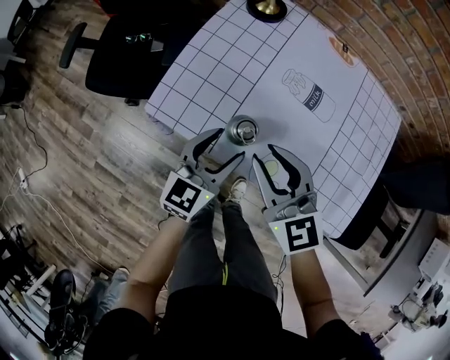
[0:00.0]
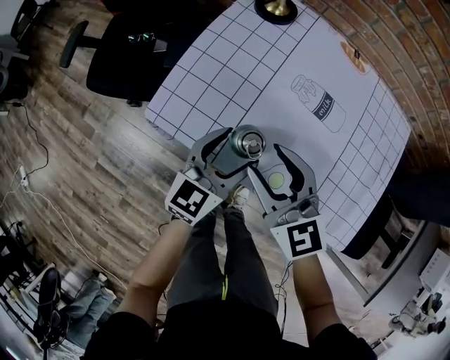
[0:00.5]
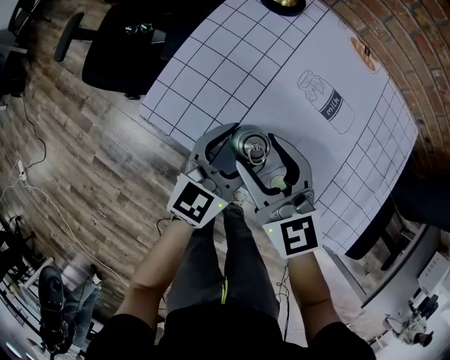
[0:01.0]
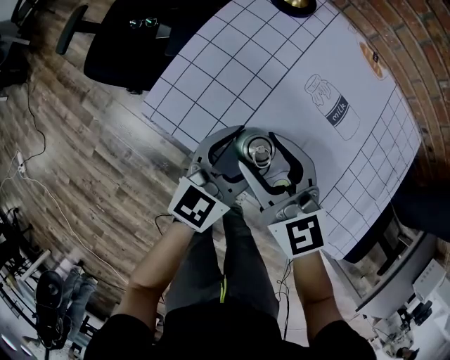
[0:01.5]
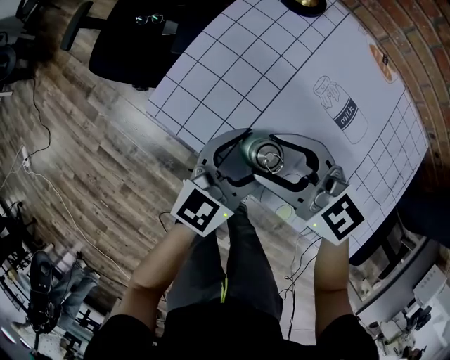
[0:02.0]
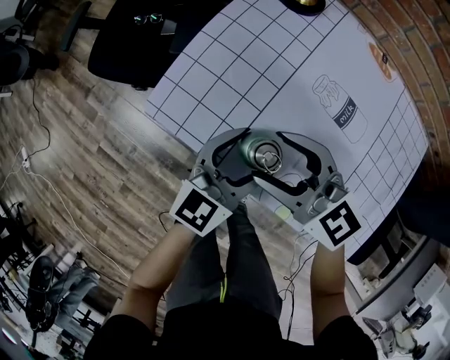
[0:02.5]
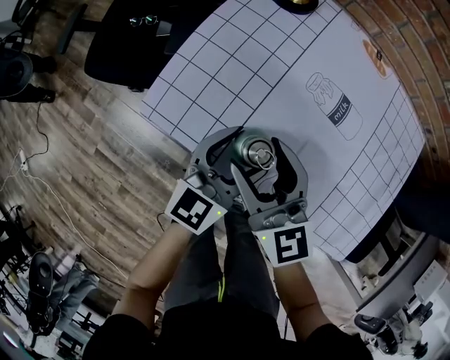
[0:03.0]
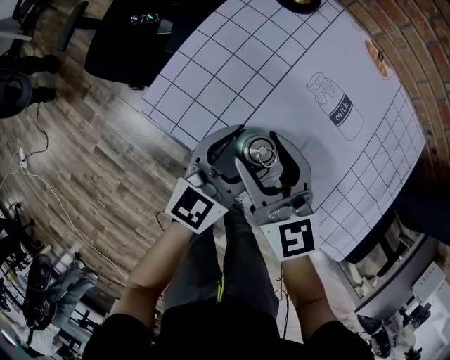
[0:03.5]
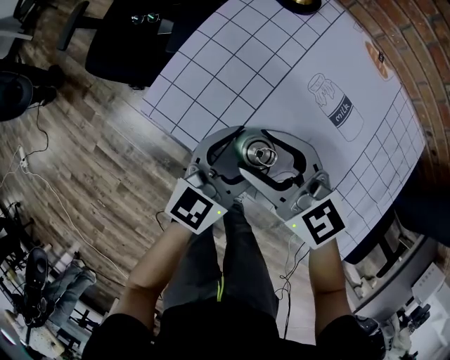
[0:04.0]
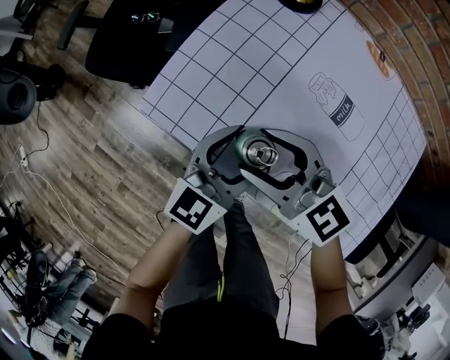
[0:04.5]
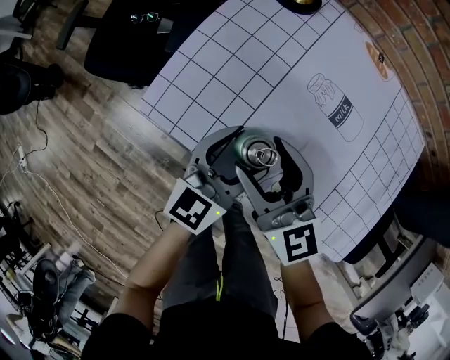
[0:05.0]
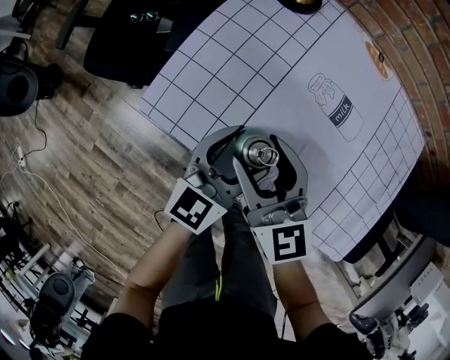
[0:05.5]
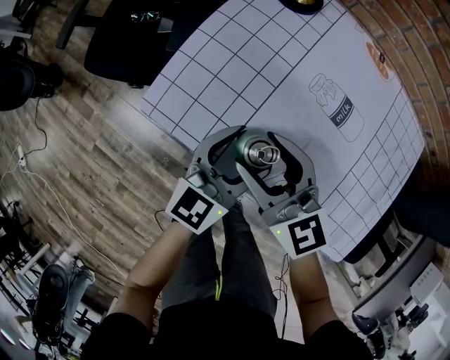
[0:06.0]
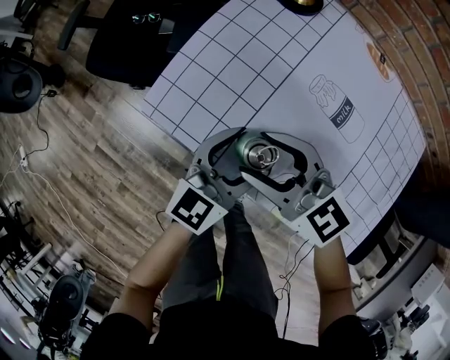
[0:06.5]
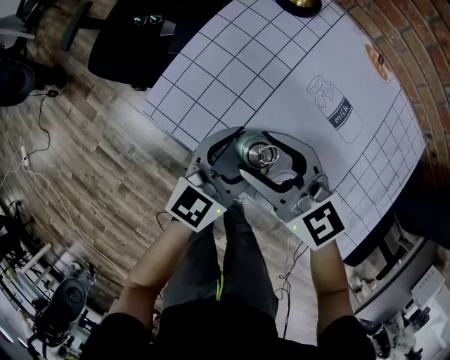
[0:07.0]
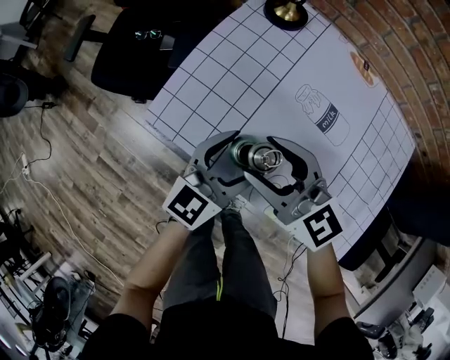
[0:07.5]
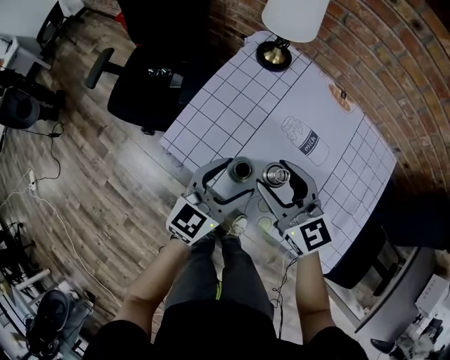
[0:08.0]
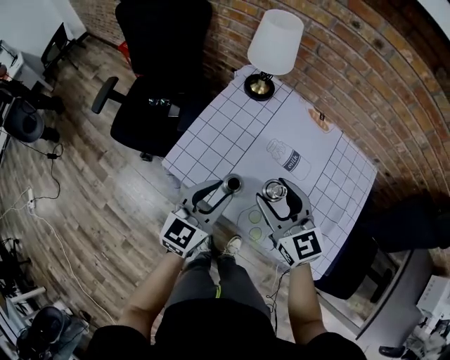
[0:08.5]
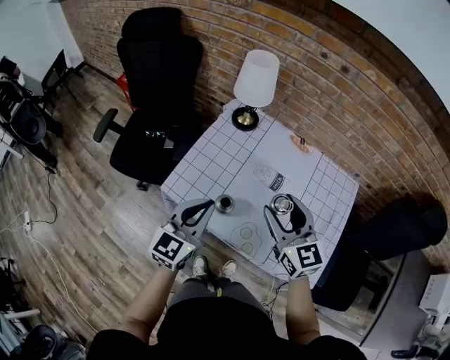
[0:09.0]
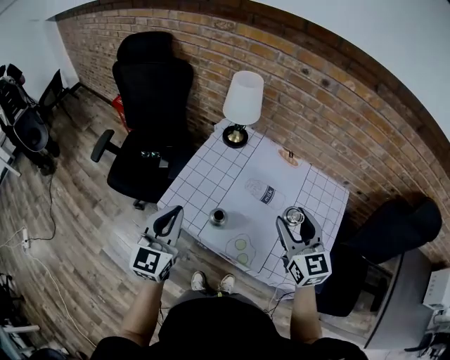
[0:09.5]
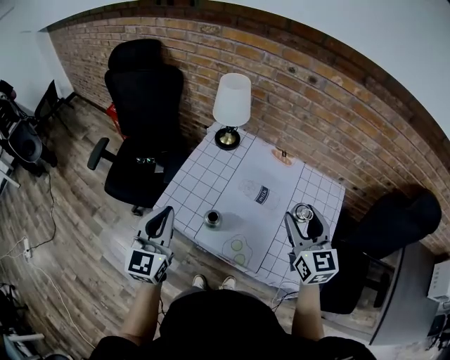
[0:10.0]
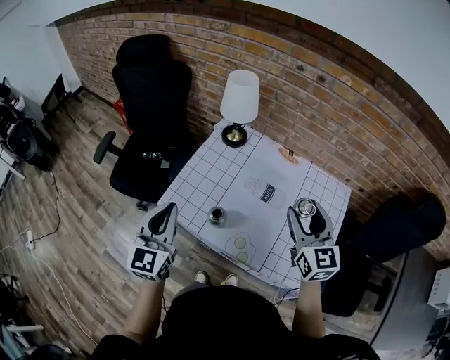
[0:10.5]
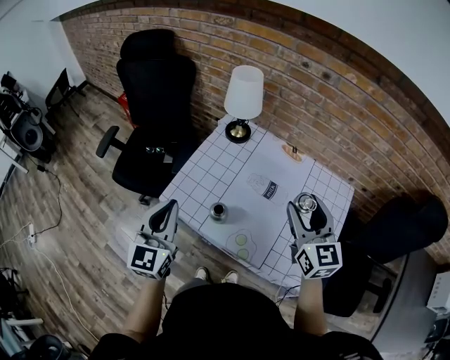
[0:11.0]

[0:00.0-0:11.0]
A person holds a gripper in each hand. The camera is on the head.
0:00.0 to 0:02.0: The right gripper goes about 5 cm downward, swivels about 40 degrees, and opens its fingers.
0:02.0 to 0:03.5: The right gripper changes its angle by some 40 degrees.
0:05.5 to 0:07.5: The right gripper rotates roughly 30 degrees.
0:07.5 to 0:09.0: The right gripper is displaced upward and to the right by some 20 cm, and turns by approximately 30 degrees; the left gripper goes approximately 15 cm upward, and closes up.
0:09.0 to 0:11.0: The right gripper heads to the right and upward, covering some 10 cm; the left gripper shifts about 10 cm to the left and upward.

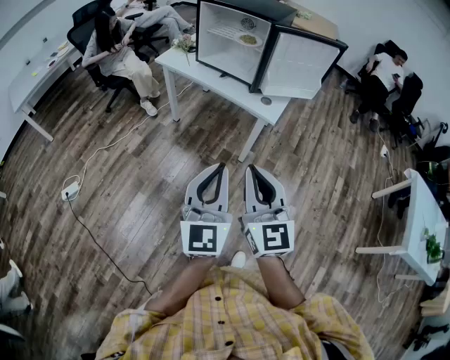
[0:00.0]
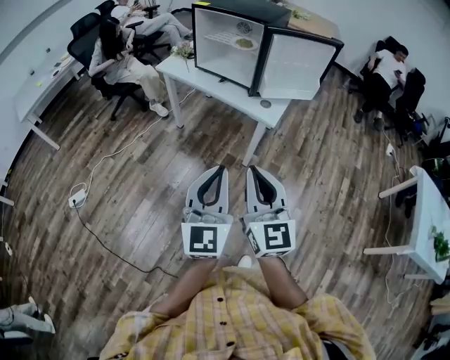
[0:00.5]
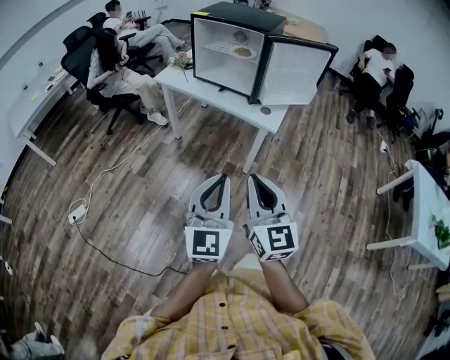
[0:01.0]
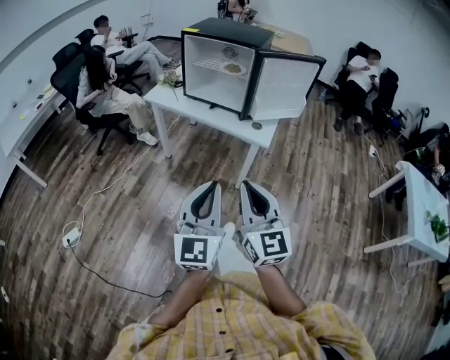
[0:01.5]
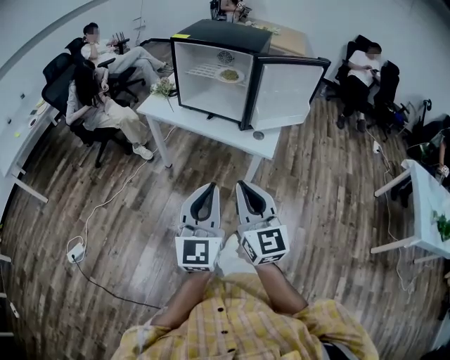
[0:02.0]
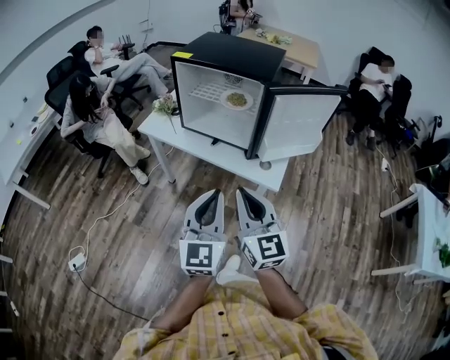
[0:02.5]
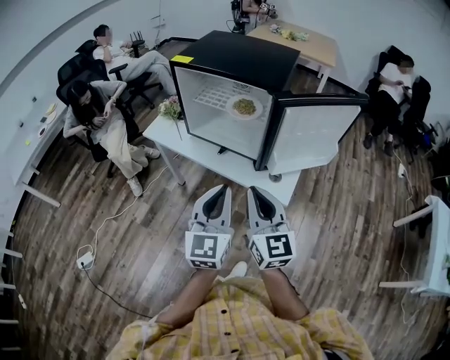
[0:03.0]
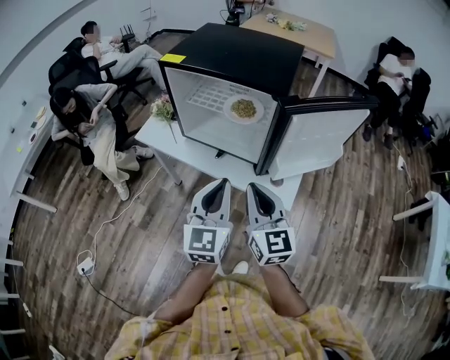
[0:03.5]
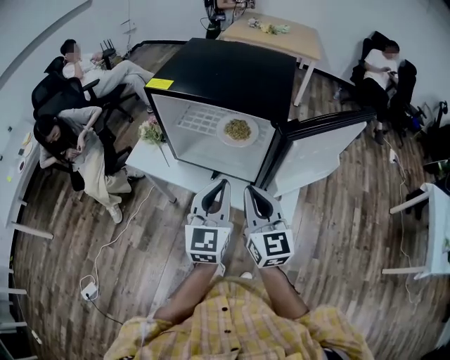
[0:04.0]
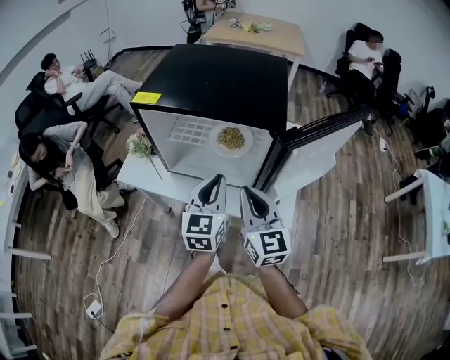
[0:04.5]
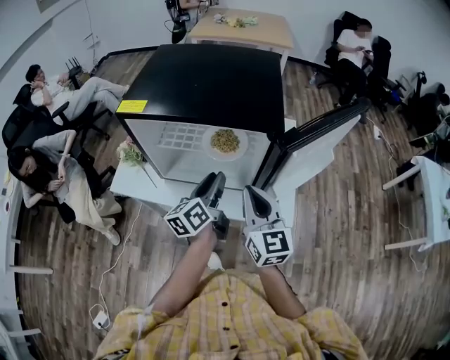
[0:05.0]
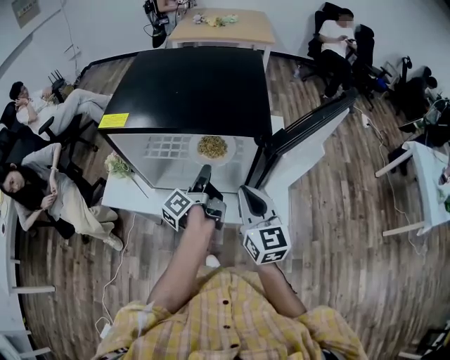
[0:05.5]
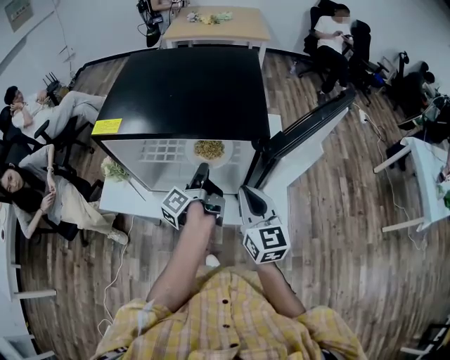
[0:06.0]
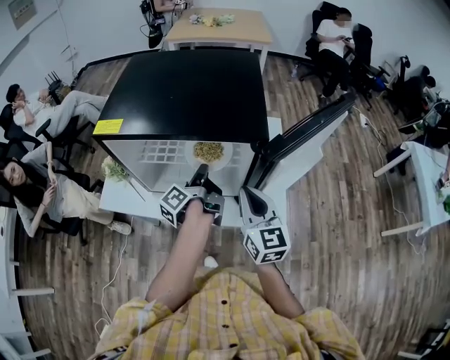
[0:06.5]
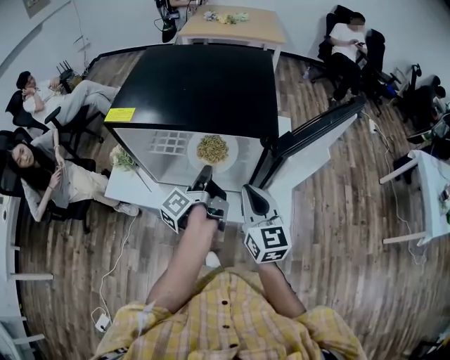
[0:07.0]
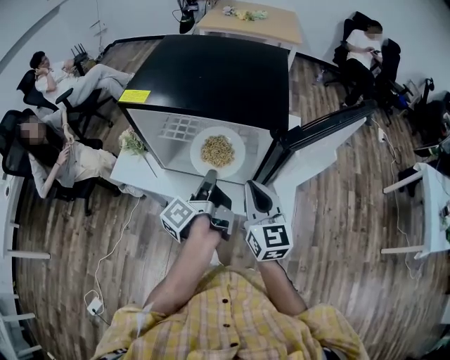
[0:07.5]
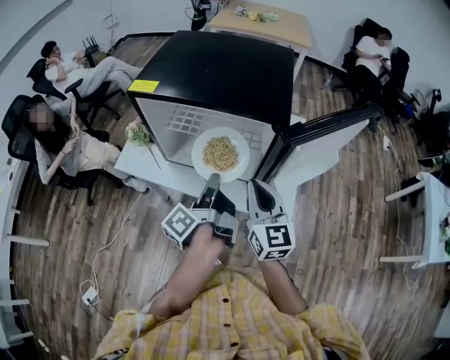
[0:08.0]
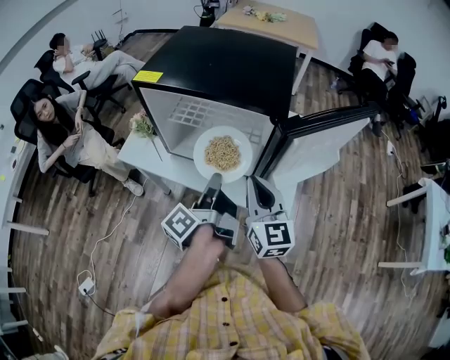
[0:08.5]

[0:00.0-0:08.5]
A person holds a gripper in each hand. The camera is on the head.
0:00.0 to 0:02.0: The grippers both shift forward by about 15 cm.
0:02.0 to 0:04.0: The two grippers go about 40 cm forward.
0:04.0 to 0:06.5: The right gripper goes roughly 10 cm forward; the left gripper goes some 25 cm forward and downward, rotates around the line of its fingers by about 90 degrees, counterclockwise from behind, and opens, then closes once more.
0:06.5 to 0:08.5: The right gripper goes some 5 cm backward. The left gripper moves backward and upward, some 20 cm.

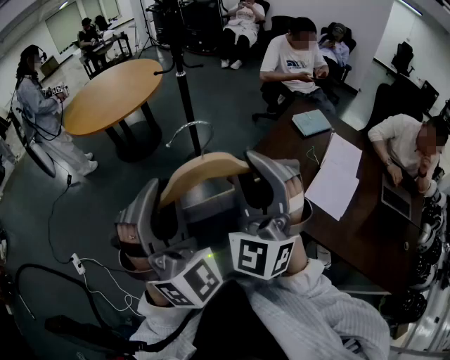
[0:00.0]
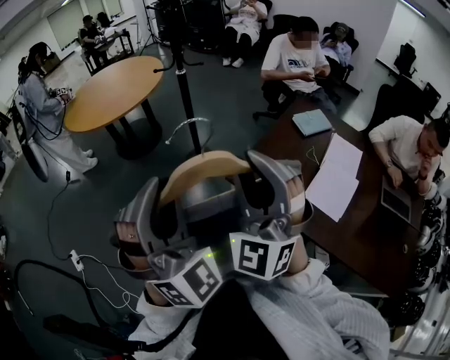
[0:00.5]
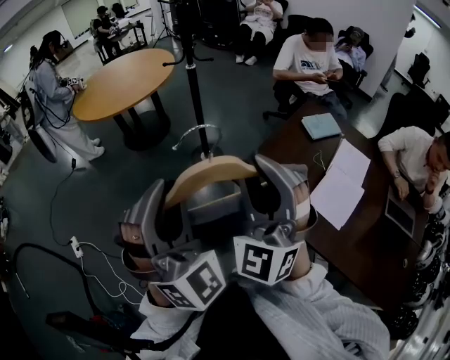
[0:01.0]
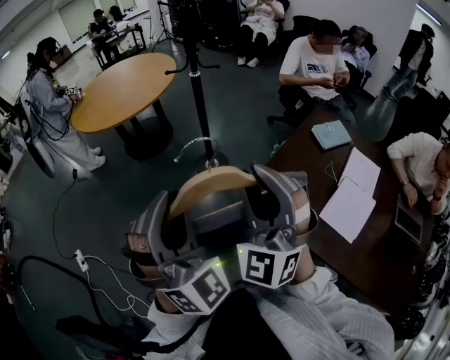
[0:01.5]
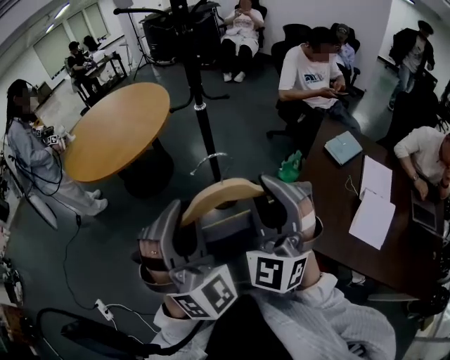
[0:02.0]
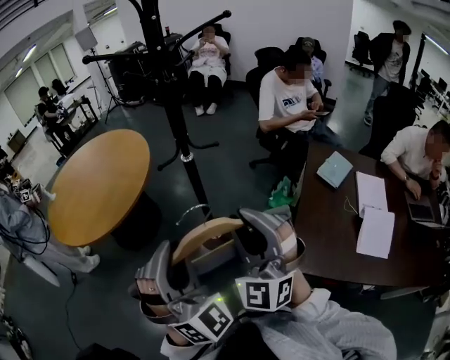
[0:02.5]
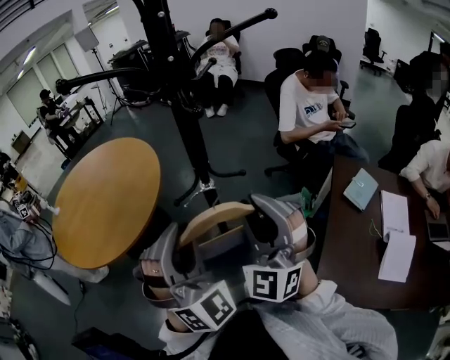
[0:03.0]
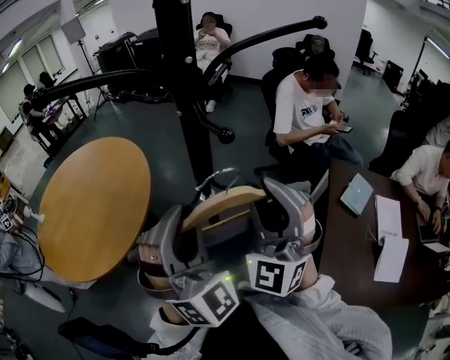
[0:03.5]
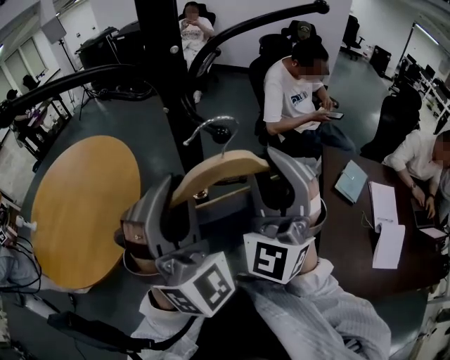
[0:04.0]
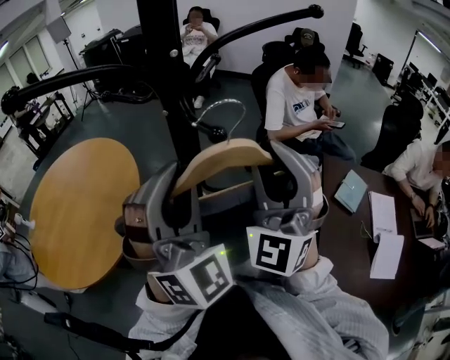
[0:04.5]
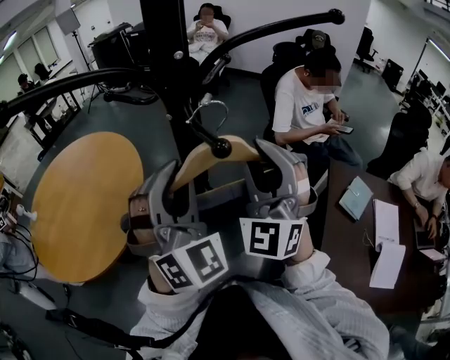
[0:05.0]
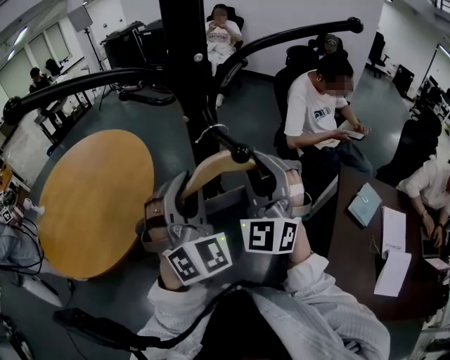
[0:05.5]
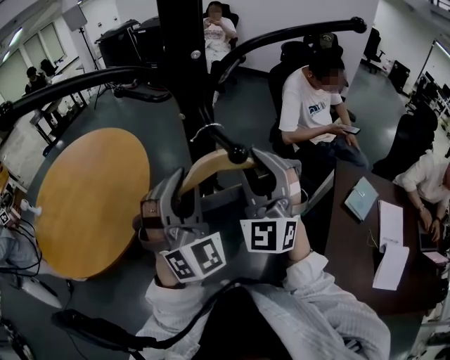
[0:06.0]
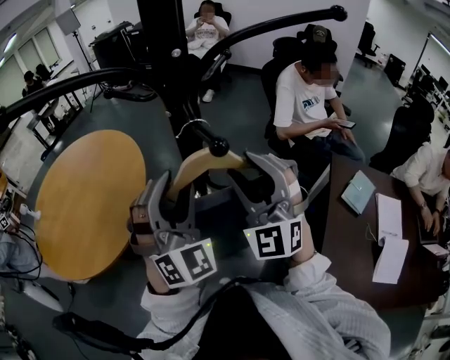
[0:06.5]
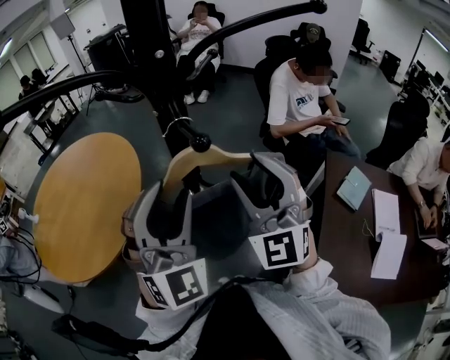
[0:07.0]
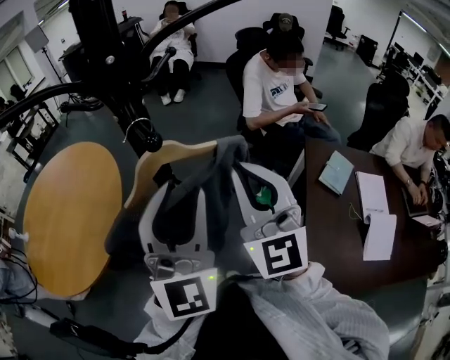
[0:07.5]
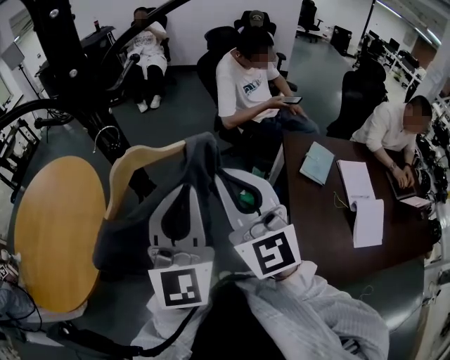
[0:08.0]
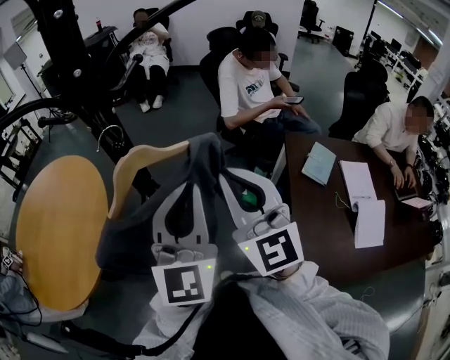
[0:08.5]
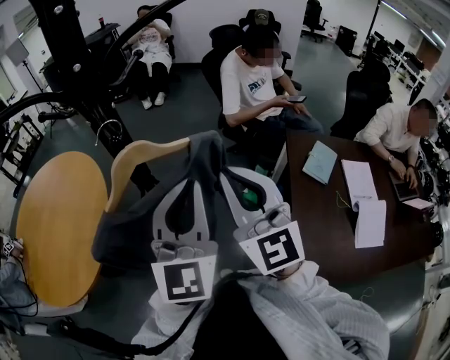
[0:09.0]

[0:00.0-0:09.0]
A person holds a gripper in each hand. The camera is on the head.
0:00.0 to 0:02.0: Both grippers travel together forward, roughly 25 cm.
0:02.0 to 0:04.5: The two grippers travel together, forward, about 50 cm. The left gripper rotates some 20 degrees.
0:04.5 to 0:07.0: The grippers both shift downward by approximately 5 cm. The right gripper changes its angle by approximately 20 degrees. Meanwhile the left gripper opens.
0:07.0 to 0:09.0: The left gripper shifts approximately 10 cm to the right, rotates around the line of its fingers by some 40 degrees, counterclockwise from behind, and closes up; the right gripper is displaced to the right by about 5 cm, changes its angle by approximately 30 degrees, and closes up.
